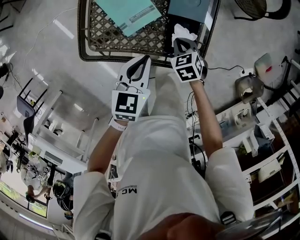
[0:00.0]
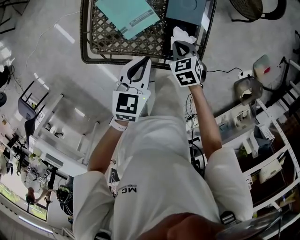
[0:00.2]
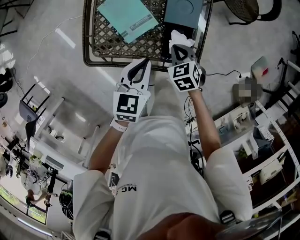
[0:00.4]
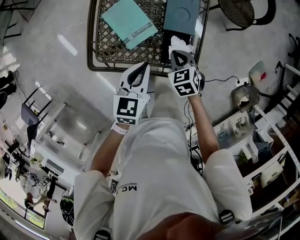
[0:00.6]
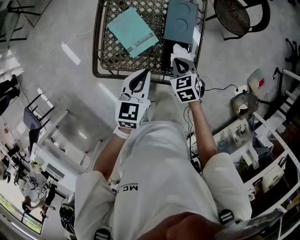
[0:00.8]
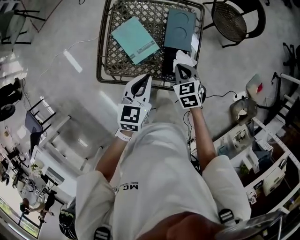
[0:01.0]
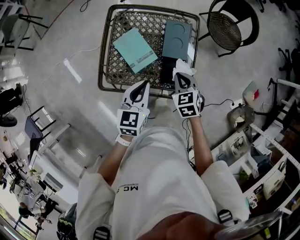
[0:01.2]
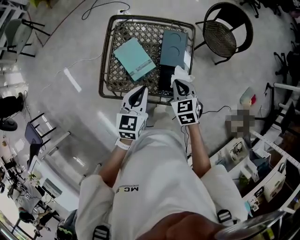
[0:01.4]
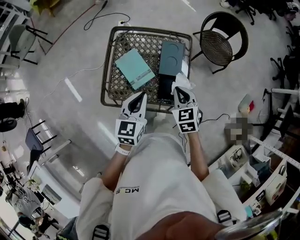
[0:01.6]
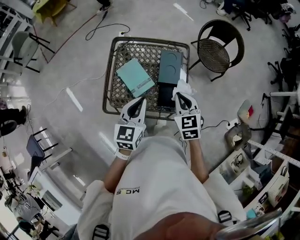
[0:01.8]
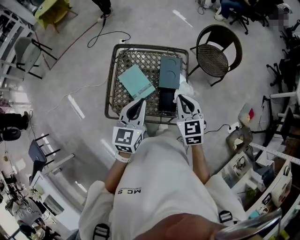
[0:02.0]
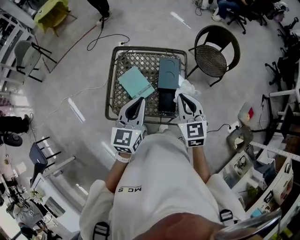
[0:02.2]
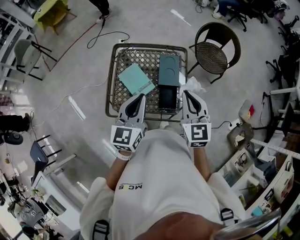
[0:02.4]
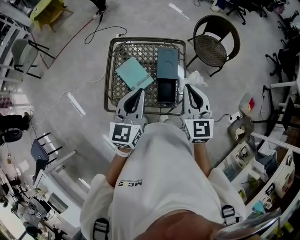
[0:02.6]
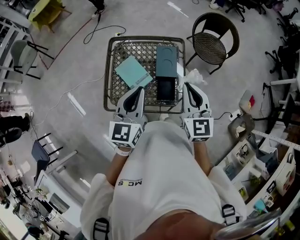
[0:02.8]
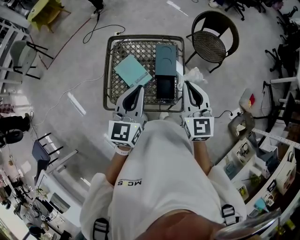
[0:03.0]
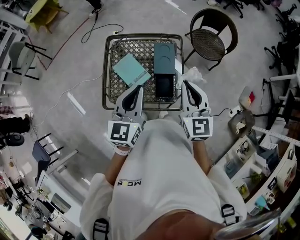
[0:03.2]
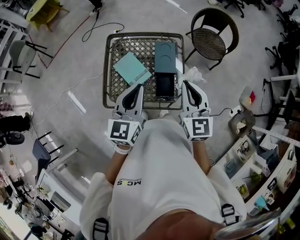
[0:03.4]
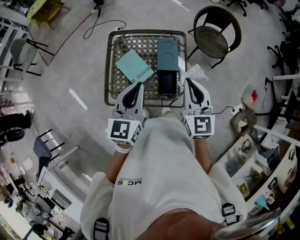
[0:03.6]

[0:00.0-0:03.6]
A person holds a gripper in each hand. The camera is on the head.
0.0 to 1.8 s: The grippers both shift upward by some 25 cm. The right gripper changes its angle by approximately 30 degrees.
1.8 to 3.6 s: Both grippers move upward, about 10 cm. The right gripper turns by approximately 30 degrees.

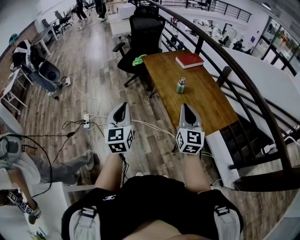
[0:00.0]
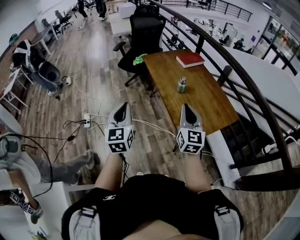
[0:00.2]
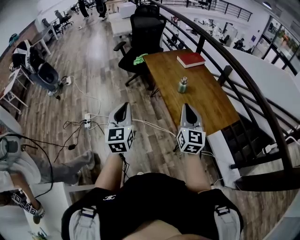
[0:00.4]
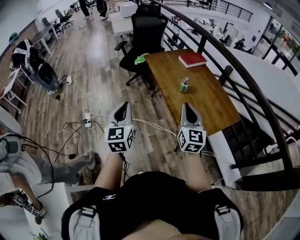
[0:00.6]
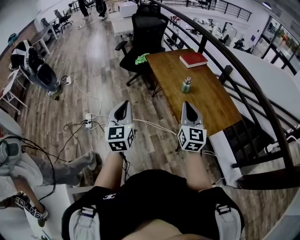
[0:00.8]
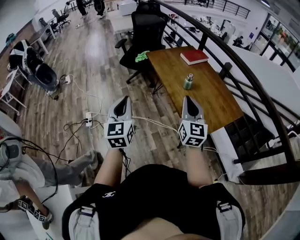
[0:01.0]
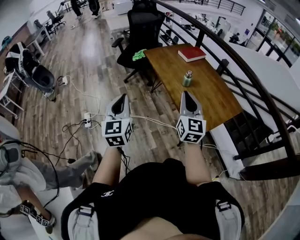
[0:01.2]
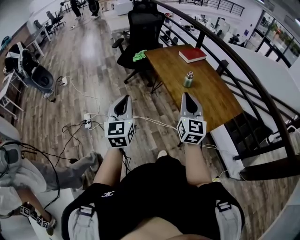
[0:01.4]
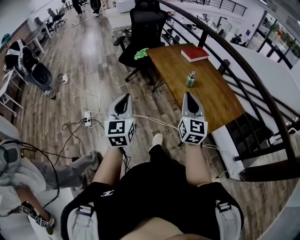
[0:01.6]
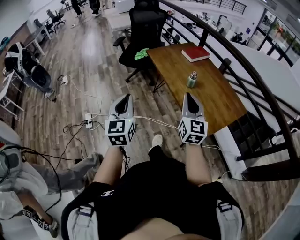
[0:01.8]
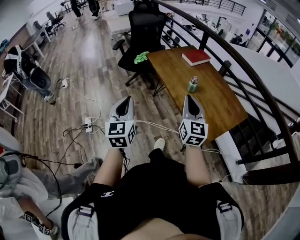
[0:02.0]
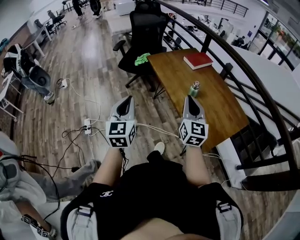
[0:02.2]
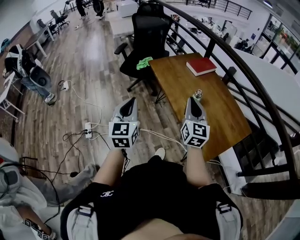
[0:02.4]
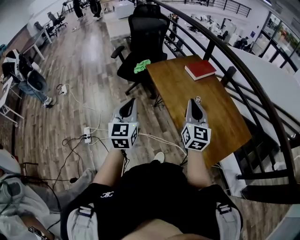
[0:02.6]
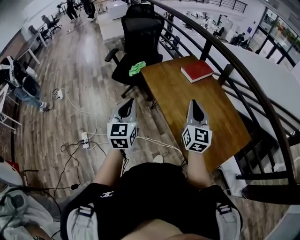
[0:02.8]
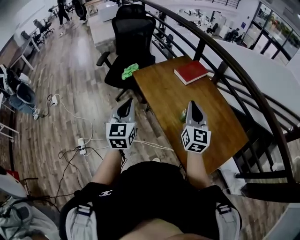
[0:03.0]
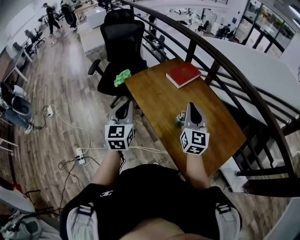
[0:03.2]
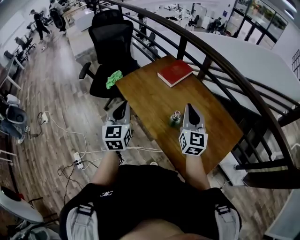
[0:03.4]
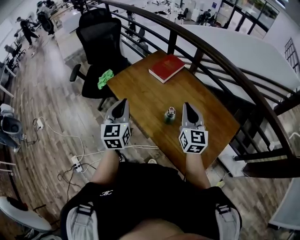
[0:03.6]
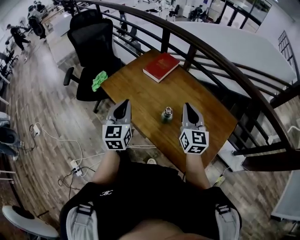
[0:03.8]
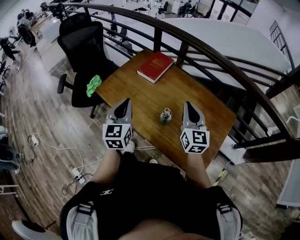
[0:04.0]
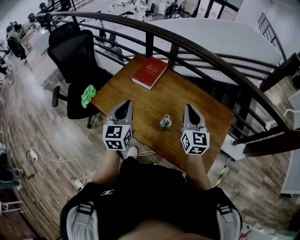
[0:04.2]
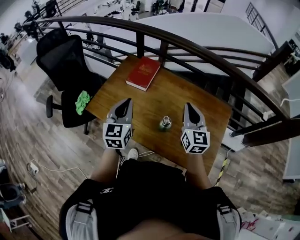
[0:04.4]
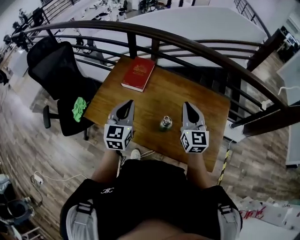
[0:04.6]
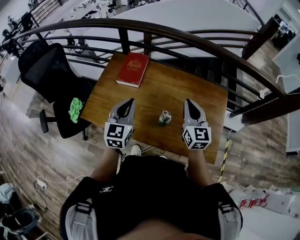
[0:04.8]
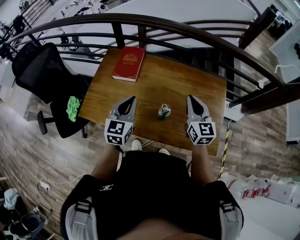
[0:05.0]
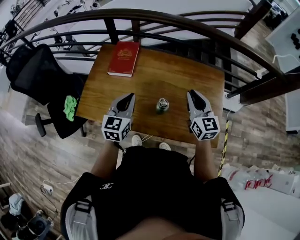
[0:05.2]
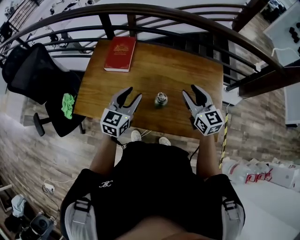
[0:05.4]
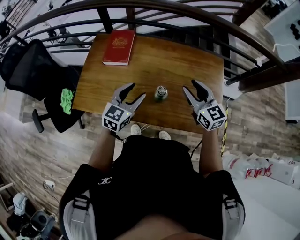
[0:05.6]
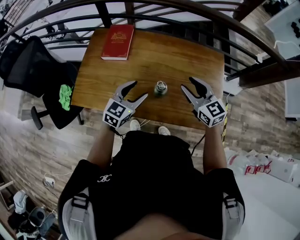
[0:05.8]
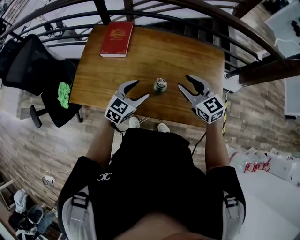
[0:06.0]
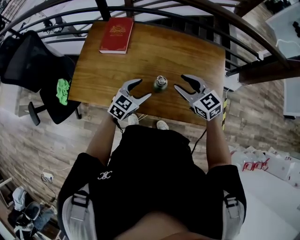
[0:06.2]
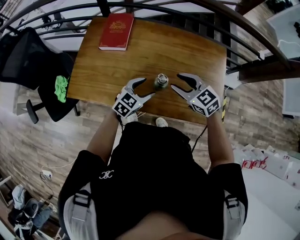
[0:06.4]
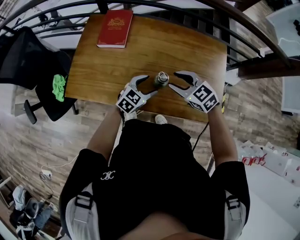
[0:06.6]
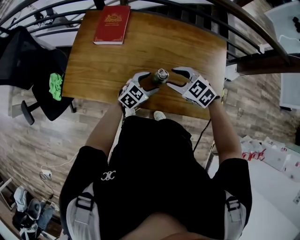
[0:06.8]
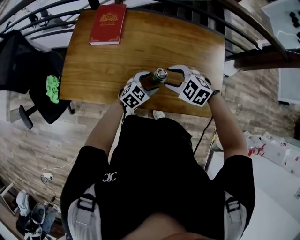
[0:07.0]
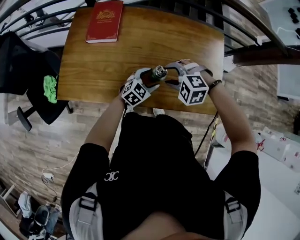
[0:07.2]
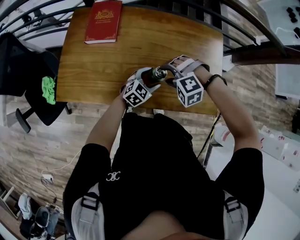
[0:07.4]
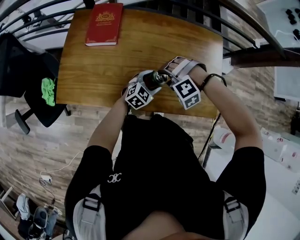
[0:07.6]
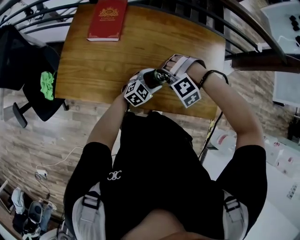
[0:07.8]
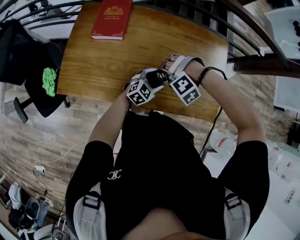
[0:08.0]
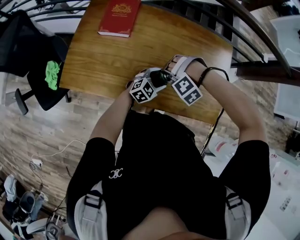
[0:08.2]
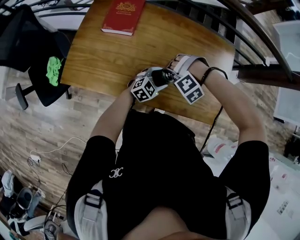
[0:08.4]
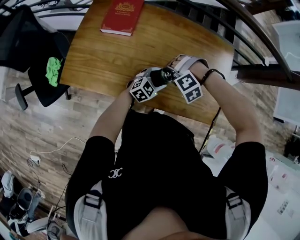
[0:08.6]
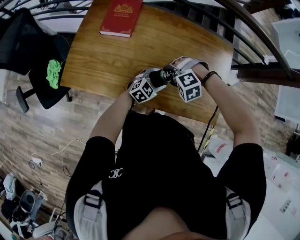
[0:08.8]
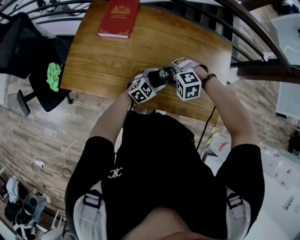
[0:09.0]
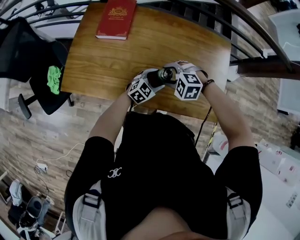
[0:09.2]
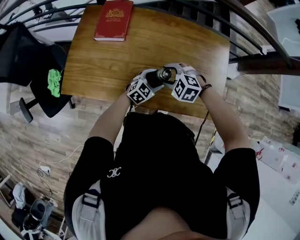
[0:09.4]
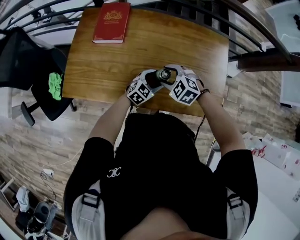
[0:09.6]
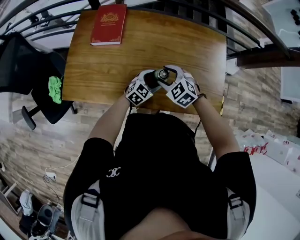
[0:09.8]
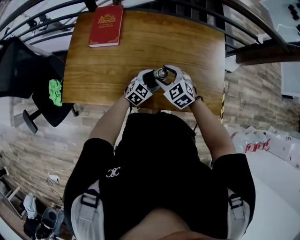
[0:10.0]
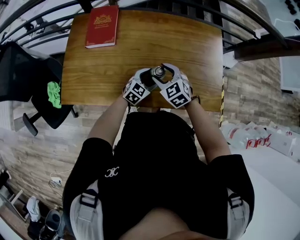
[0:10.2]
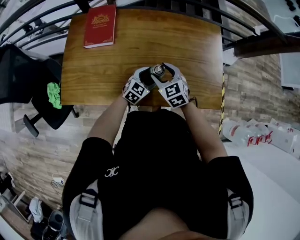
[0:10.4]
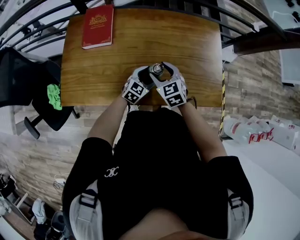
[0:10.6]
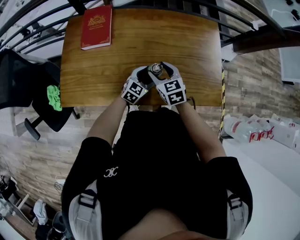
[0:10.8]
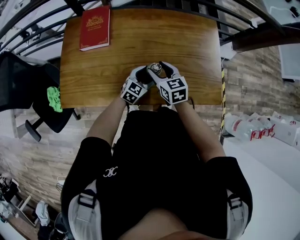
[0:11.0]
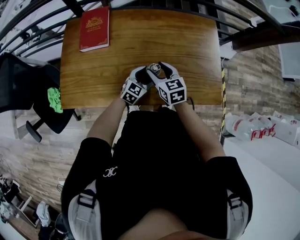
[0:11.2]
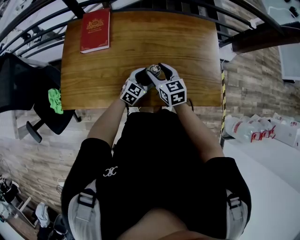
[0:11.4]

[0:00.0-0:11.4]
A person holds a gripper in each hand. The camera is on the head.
0.0 to 1.4 s: Both grippers travel together to the left, about 10 cm.
1.4 to 2.8 s: Both grippers move forward, roughly 30 cm.
2.8 to 4.2 s: The left gripper moves approximately 30 cm, and rotates approximately 30 degrees; the right gripper shifts by about 15 cm, and swivels some 30 degrees.
4.2 to 5.6 s: The left gripper moves downward, to the right and forward, some 15 cm, rotates roughly 50 degrees, and opens its fingers, while the right gripper travels downward by approximately 5 cm, and opens.
5.6 to 7.2 s: The left gripper shifts roughly 20 cm downward and to the right, and rotates about 30 degrees, while the right gripper moves downward and to the left, approximately 15 cm, and angles its fingers downward, by approximately 50 degrees.
7.2 to 8.6 s: The right gripper moves downward, roughly 5 cm, and turns by some 40 degrees.
8.6 to 10.0 s: The right gripper rolls clockwise, seen from behind, by approximately 80 degrees.
10.0 to 11.4 s: The right gripper swivels about 40 degrees.

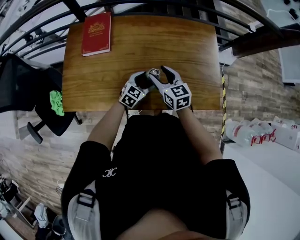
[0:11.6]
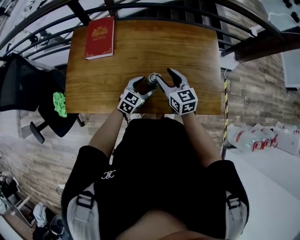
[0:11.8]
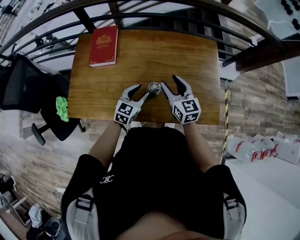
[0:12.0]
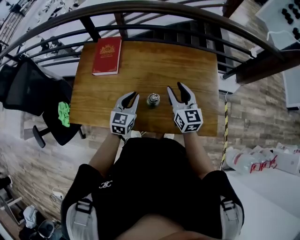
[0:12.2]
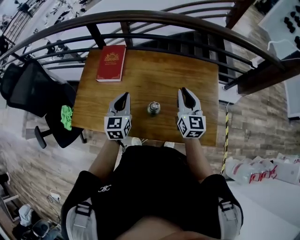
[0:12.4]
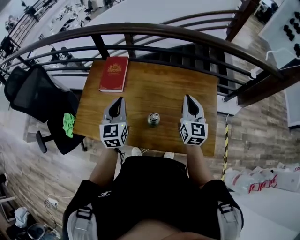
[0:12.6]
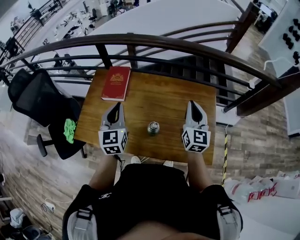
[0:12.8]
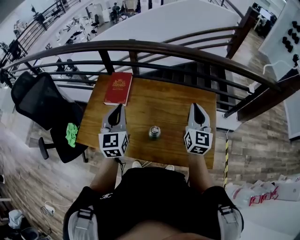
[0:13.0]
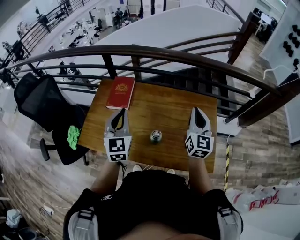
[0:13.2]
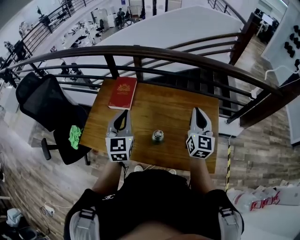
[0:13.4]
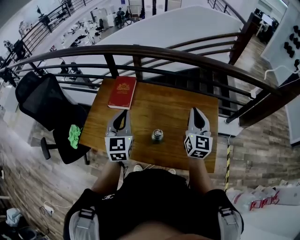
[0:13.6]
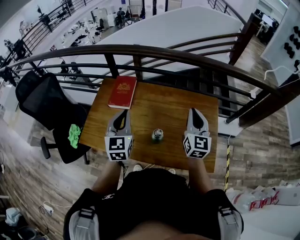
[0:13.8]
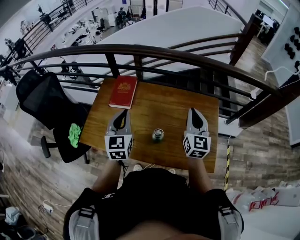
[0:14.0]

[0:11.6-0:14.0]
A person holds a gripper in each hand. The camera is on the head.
11.6 to 12.8 s: The left gripper is displaced upward and to the left by approximately 35 cm, turns by about 60 degrees, and closes up; the right gripper goes about 25 cm upward and to the right, turns by approximately 30 degrees, and closes.
12.8 to 14.0 s: The grippers make only small movements.

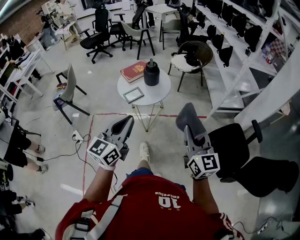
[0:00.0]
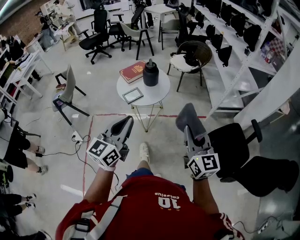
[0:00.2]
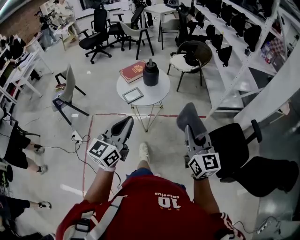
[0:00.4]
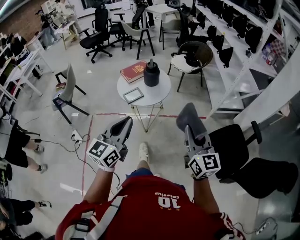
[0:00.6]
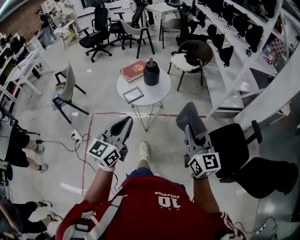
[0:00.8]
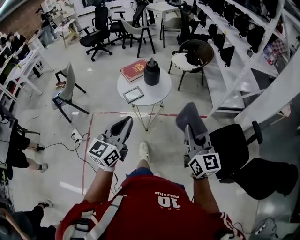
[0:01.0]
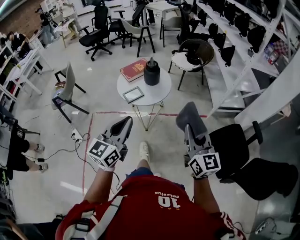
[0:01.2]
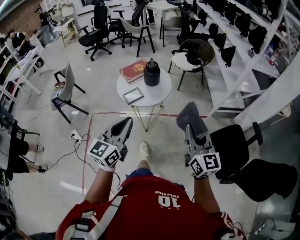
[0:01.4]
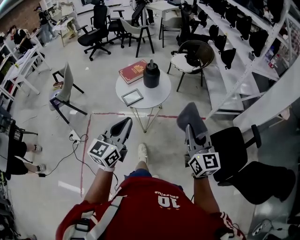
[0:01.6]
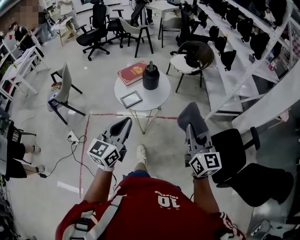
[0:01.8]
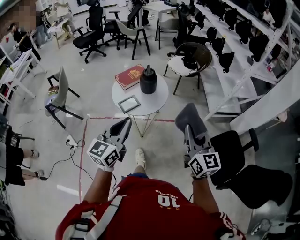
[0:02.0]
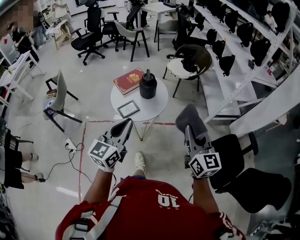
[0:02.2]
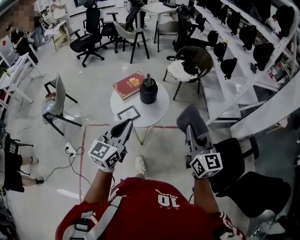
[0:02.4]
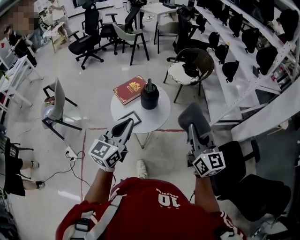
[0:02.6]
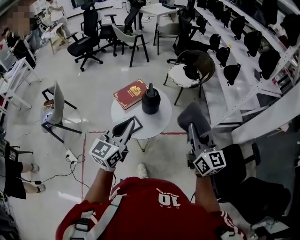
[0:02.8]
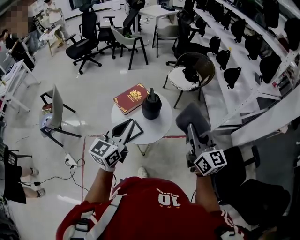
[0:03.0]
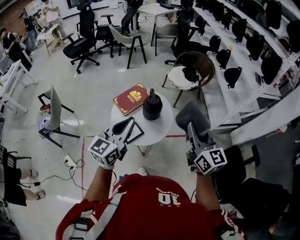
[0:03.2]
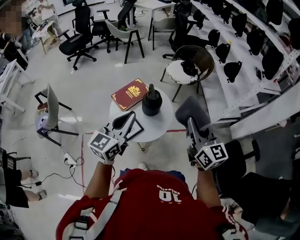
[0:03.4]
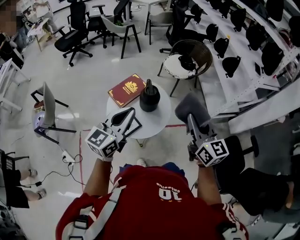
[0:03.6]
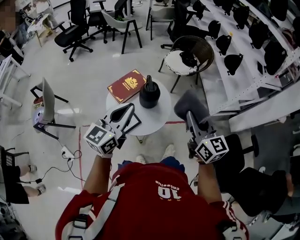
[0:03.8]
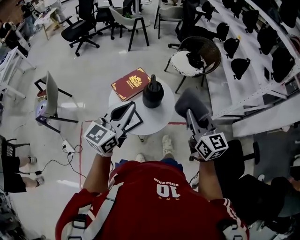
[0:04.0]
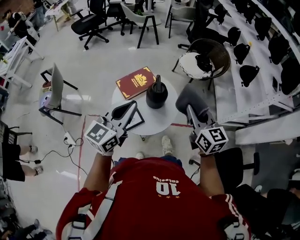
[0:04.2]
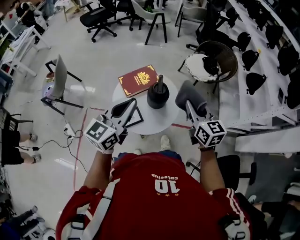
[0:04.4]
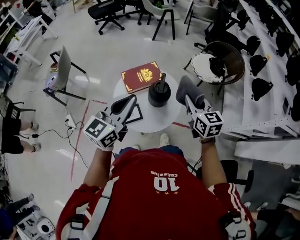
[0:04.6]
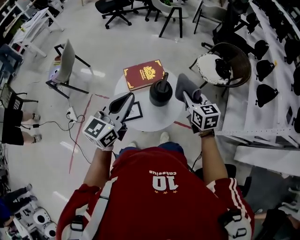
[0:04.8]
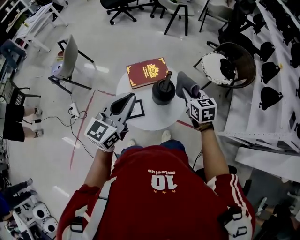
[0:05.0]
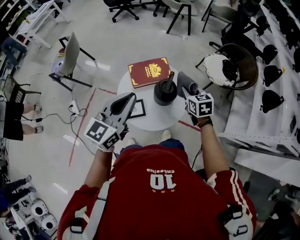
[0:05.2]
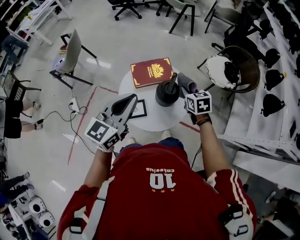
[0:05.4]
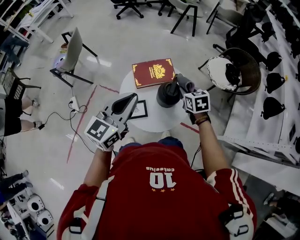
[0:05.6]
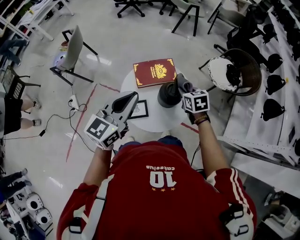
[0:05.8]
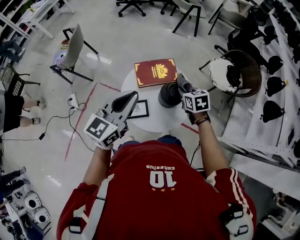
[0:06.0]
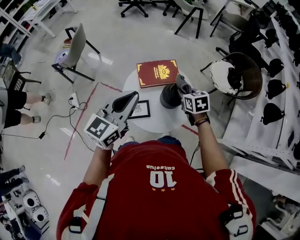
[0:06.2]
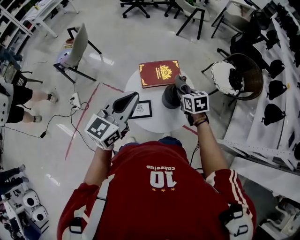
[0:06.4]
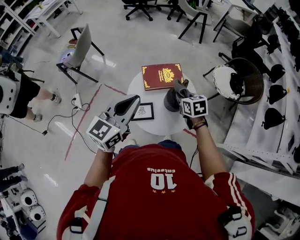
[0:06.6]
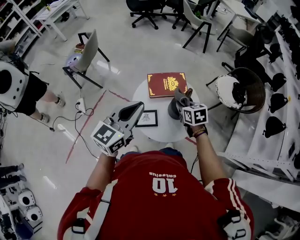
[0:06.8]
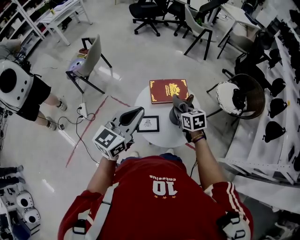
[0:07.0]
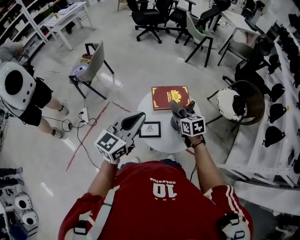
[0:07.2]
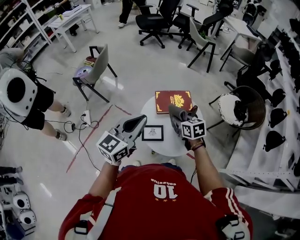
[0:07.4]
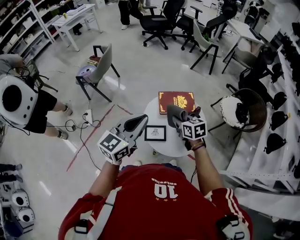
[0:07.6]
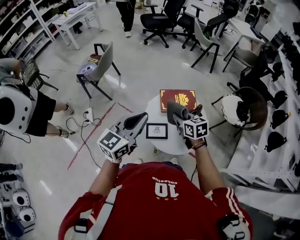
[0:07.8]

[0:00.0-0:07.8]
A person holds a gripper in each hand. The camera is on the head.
0.0 to 1.6 s: Both grippers move forward, roughly 5 cm.
1.6 to 3.2 s: Both grippers move forward, approximately 30 cm.
3.2 to 4.6 s: The right gripper travels forward and downward by roughly 25 cm, and swivels some 30 degrees; the left gripper goes roughly 10 cm forward.
4.6 to 6.2 s: The left gripper changes place by about 5 cm, while the right gripper moves downward, forward and to the left, about 20 cm, and turns by about 30 degrees.
6.2 to 7.8 s: The left gripper moves to the left, about 10 cm. Meanwhile the right gripper moves to the left and upward, roughly 15 cm.
